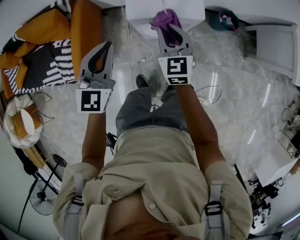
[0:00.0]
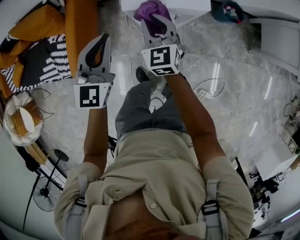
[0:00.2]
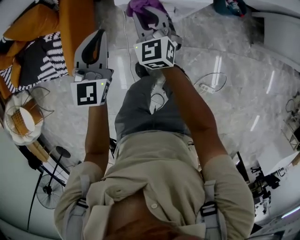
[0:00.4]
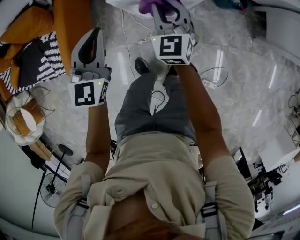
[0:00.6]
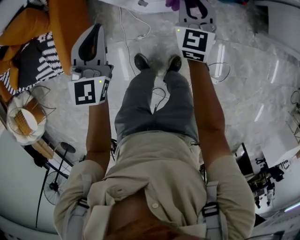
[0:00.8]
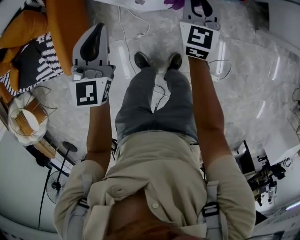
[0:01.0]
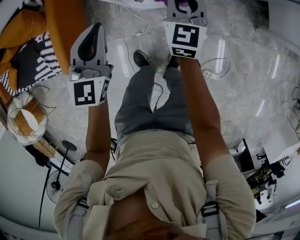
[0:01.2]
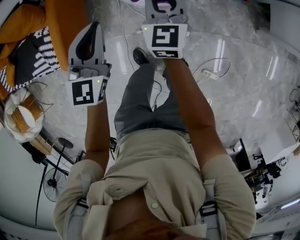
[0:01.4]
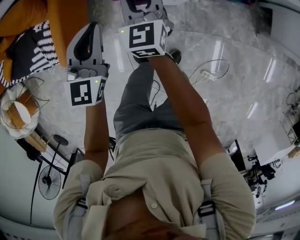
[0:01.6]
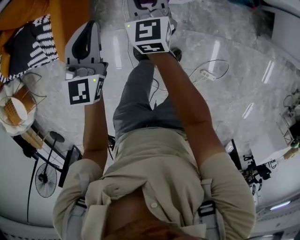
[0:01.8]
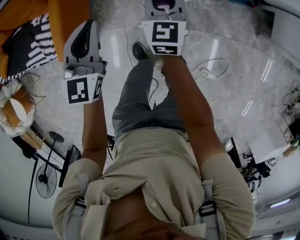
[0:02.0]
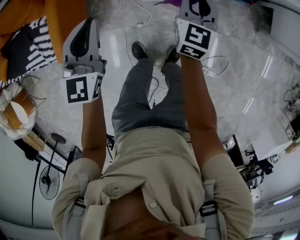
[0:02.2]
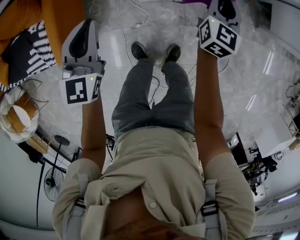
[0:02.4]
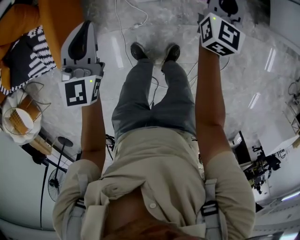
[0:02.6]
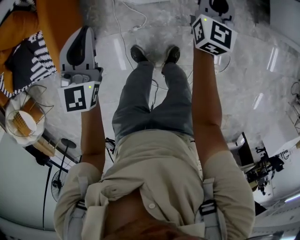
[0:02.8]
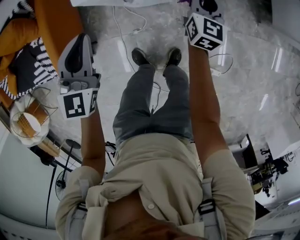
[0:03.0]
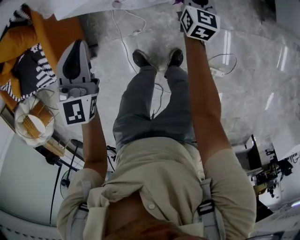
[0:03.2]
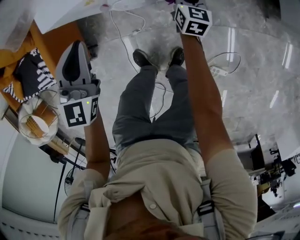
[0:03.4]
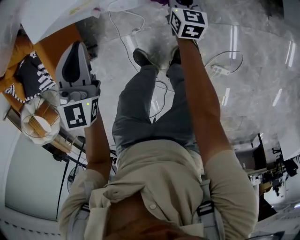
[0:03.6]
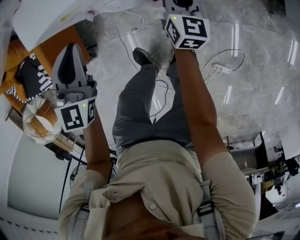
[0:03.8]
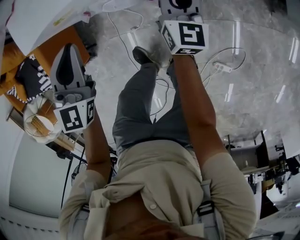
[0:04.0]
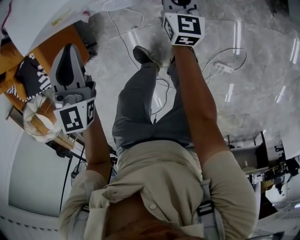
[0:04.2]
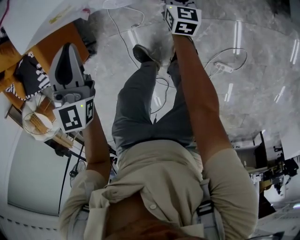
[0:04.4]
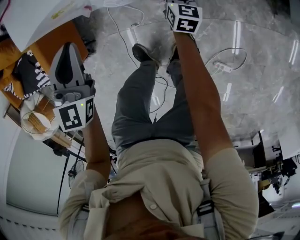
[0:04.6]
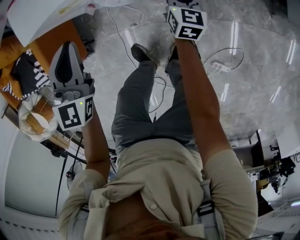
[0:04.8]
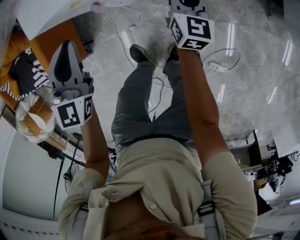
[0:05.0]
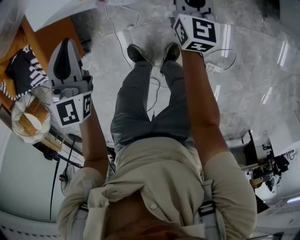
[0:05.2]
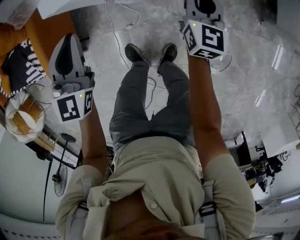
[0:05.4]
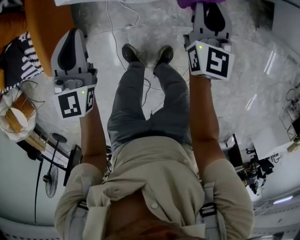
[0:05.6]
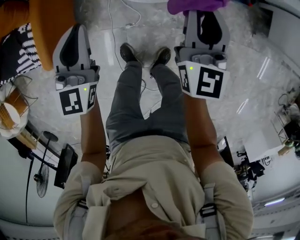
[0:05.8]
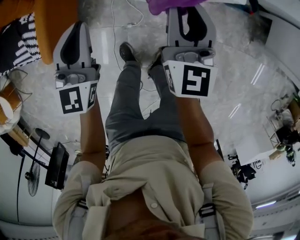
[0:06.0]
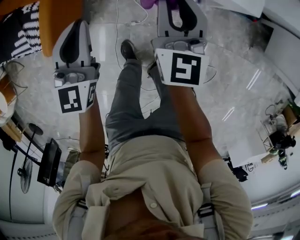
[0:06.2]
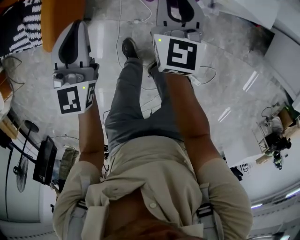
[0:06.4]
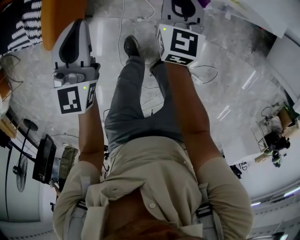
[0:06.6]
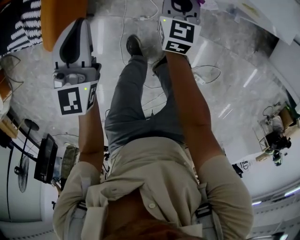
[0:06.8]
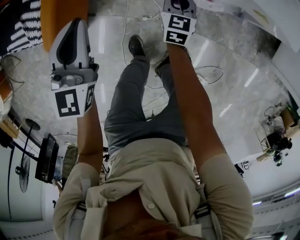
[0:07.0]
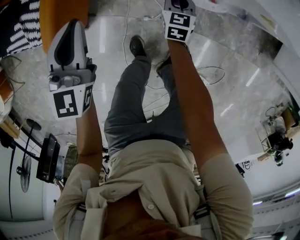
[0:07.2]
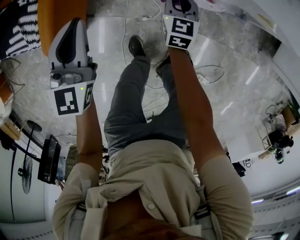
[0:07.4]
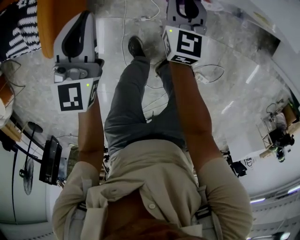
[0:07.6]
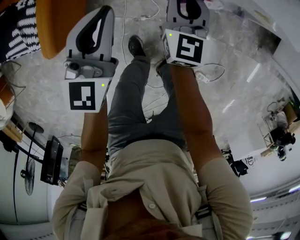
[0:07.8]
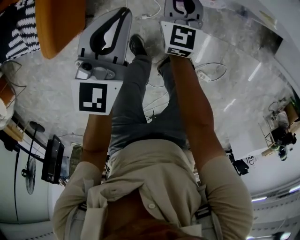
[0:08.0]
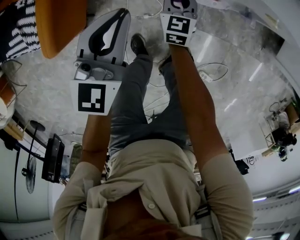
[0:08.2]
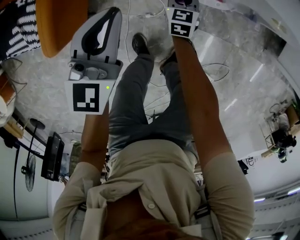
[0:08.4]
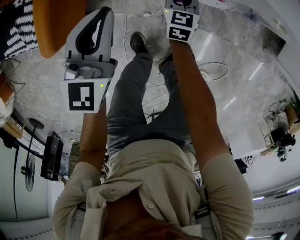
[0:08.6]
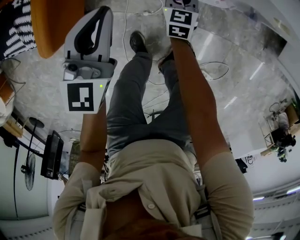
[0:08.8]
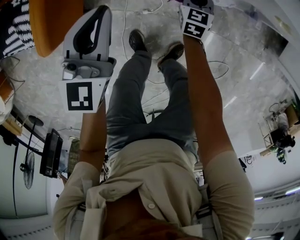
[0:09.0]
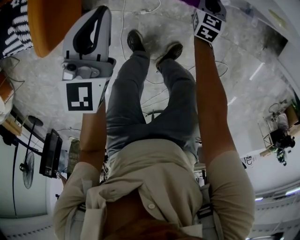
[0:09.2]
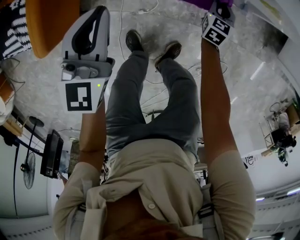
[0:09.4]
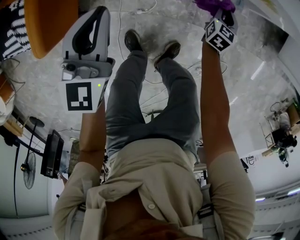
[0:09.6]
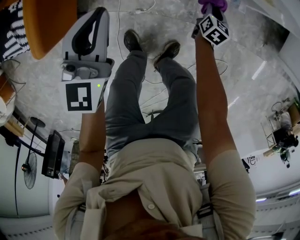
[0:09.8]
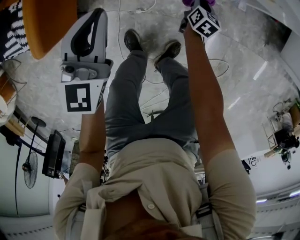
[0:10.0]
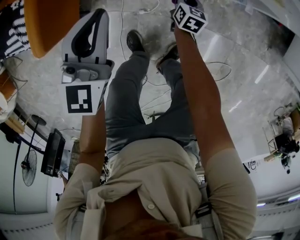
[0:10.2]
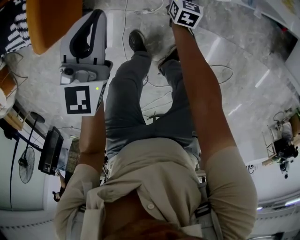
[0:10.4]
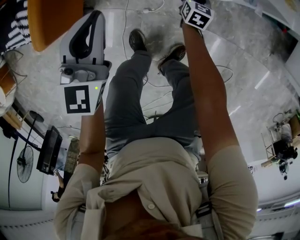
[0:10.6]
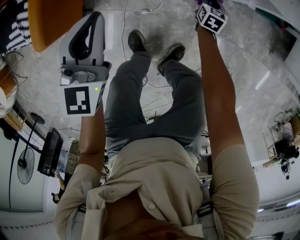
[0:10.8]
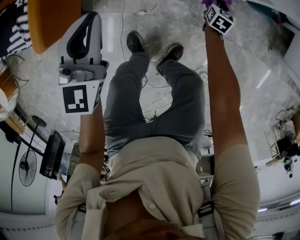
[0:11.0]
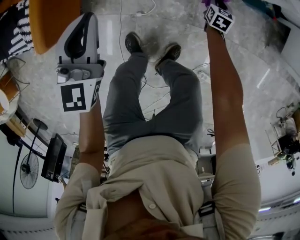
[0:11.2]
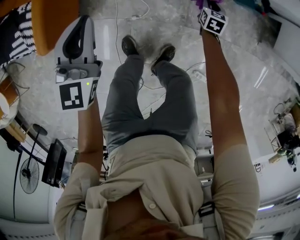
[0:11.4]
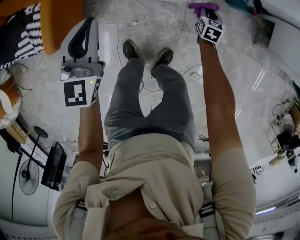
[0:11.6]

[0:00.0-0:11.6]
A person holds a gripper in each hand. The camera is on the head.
0:00.0 to 0:01.4: The left gripper is displaced downward by roughly 10 cm; the right gripper goes left and right, roughly 20 cm each way, reversing 2 times.
0:01.4 to 0:02.8: The left gripper travels to the left and back again, some 10 cm each way; the right gripper goes some 15 cm to the right.
0:02.8 to 0:04.4: The left gripper heads downward and to the right, covering approximately 15 cm; the right gripper swings up and down, about 30 cm each way, with 2 reversals, and swivels some 30 degrees.
0:04.4 to 0:05.8: The left gripper heads to the left and upward, covering some 10 cm. Meanwhile the right gripper moves upward, some 35 cm, and swivels about 30 degrees.
0:05.8 to 0:07.2: The right gripper travels downward and to the left by some 40 cm, and turns by some 30 degrees; the left gripper shifts about 20 cm to the left.
0:07.2 to 0:08.8: The left gripper heads to the right, covering some 5 cm. The right gripper goes upward and returns, about 15 cm each way.
0:08.8 to 0:10.2: The right gripper heads to the right and downward, covering roughly 15 cm, and turns by roughly 30 degrees. The left gripper travels to the right by some 5 cm.
0:10.2 to 0:11.6: The right gripper shifts some 20 cm to the right and upward. Meanwhile the left gripper travels upward by about 15 cm.

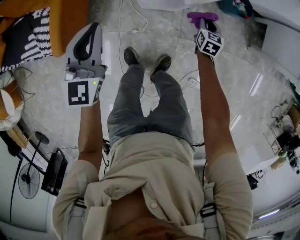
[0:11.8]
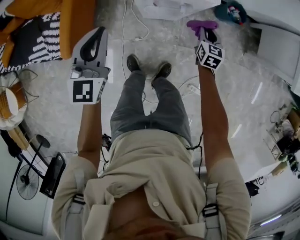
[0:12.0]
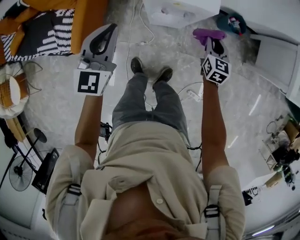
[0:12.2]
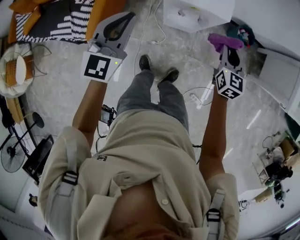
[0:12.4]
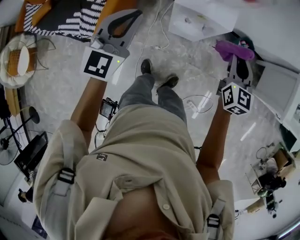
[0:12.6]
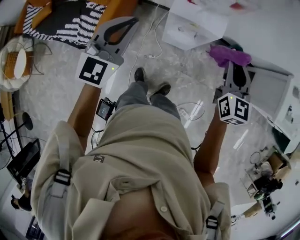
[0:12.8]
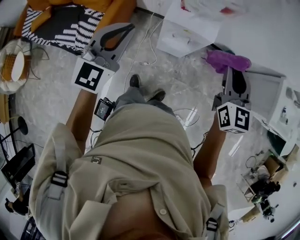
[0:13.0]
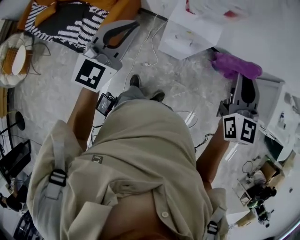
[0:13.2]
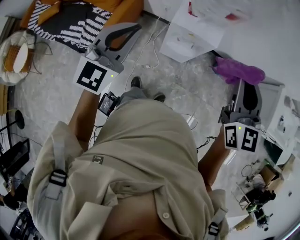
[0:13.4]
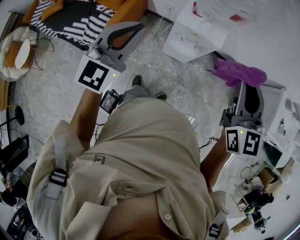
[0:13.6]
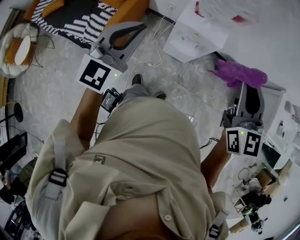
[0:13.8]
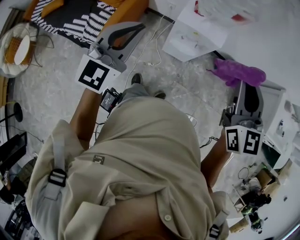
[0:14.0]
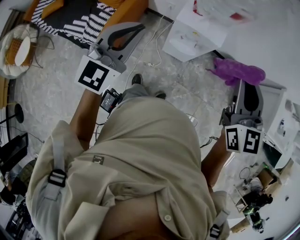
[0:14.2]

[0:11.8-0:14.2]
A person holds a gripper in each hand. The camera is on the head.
0:11.8 to 0:13.0: The right gripper shifts roughly 60 cm upward, and points its fingers approximately 30 degrees further upward; the left gripper shifts some 30 cm upward.
0:13.0 to 0:14.2: The right gripper shifts some 10 cm upward and backward. The left gripper is displaced backward by some 5 cm.

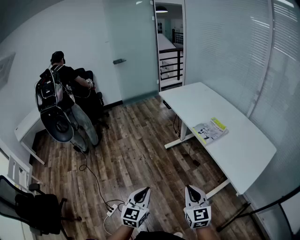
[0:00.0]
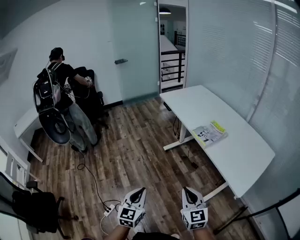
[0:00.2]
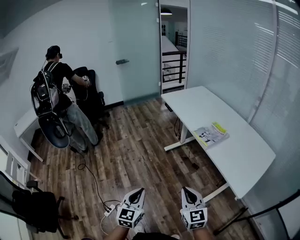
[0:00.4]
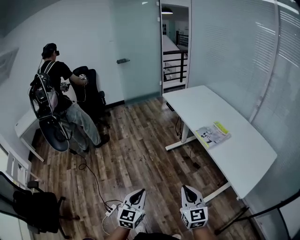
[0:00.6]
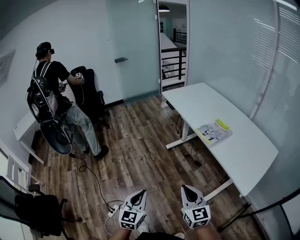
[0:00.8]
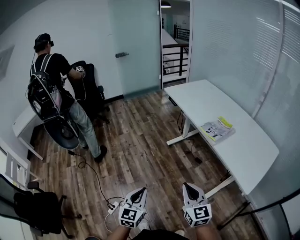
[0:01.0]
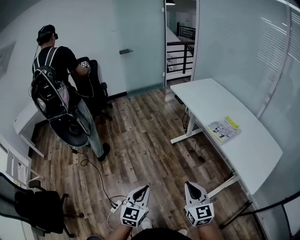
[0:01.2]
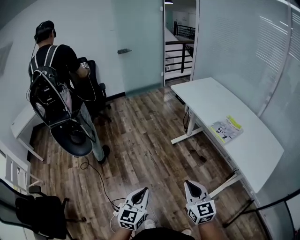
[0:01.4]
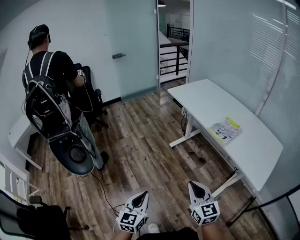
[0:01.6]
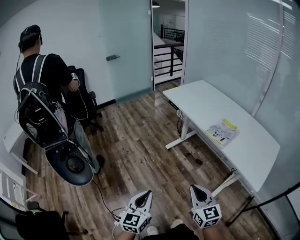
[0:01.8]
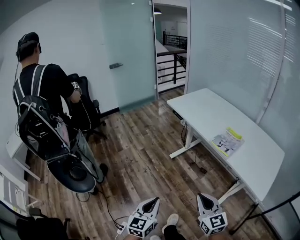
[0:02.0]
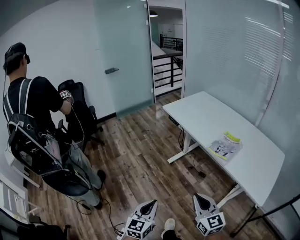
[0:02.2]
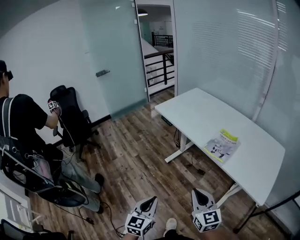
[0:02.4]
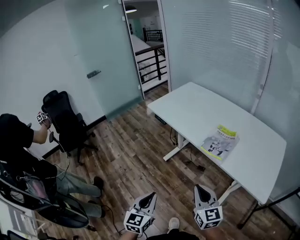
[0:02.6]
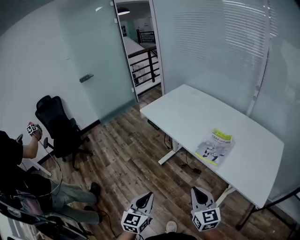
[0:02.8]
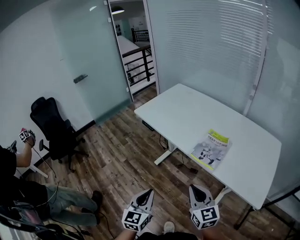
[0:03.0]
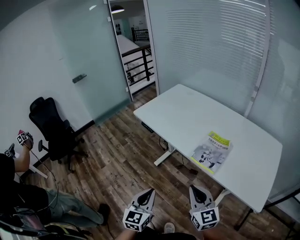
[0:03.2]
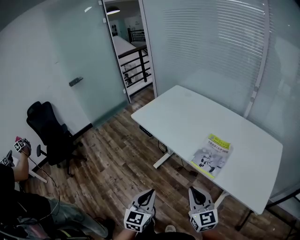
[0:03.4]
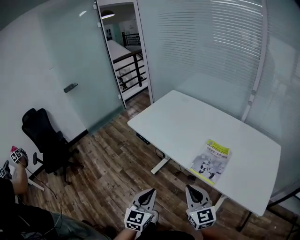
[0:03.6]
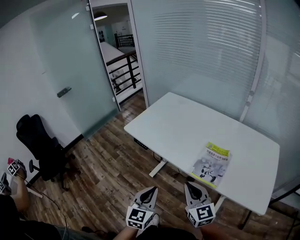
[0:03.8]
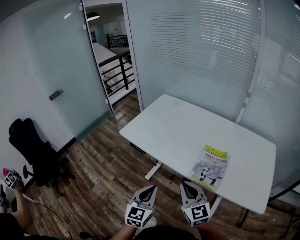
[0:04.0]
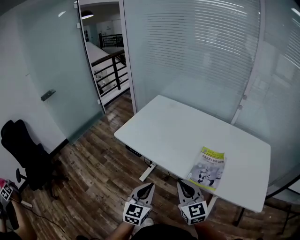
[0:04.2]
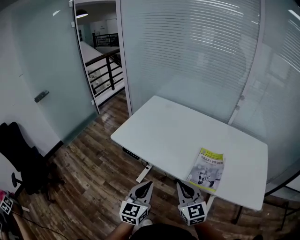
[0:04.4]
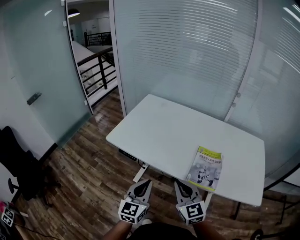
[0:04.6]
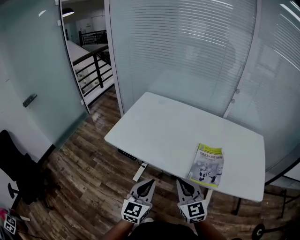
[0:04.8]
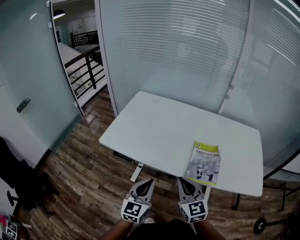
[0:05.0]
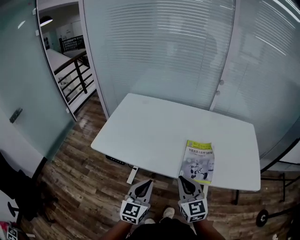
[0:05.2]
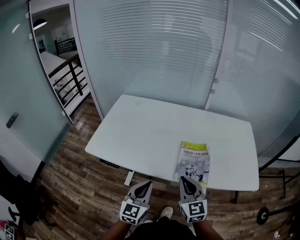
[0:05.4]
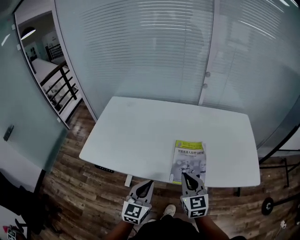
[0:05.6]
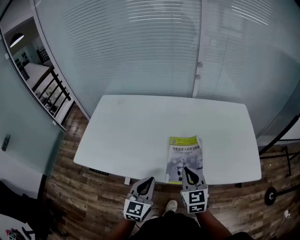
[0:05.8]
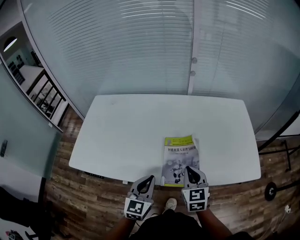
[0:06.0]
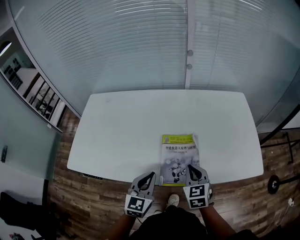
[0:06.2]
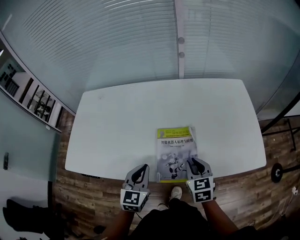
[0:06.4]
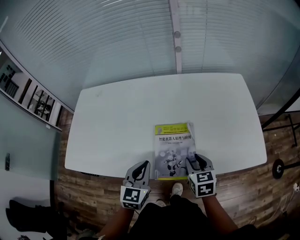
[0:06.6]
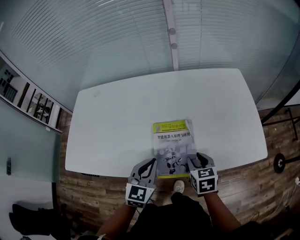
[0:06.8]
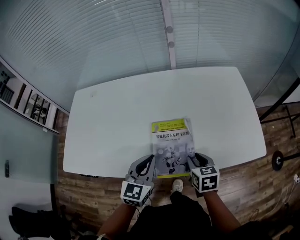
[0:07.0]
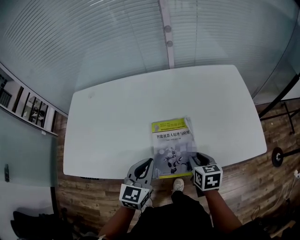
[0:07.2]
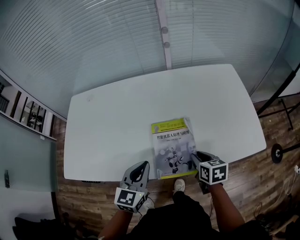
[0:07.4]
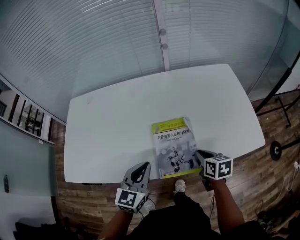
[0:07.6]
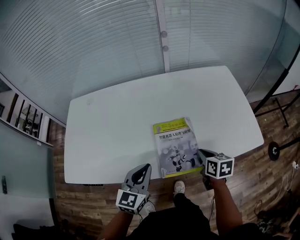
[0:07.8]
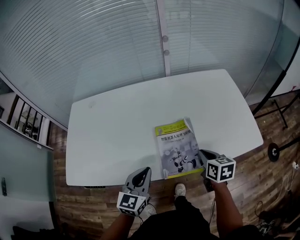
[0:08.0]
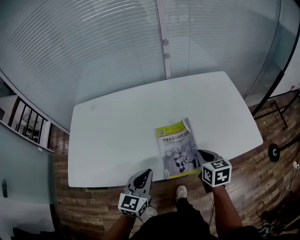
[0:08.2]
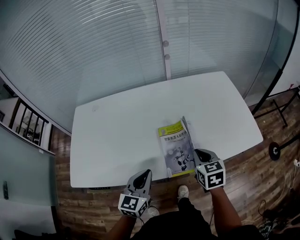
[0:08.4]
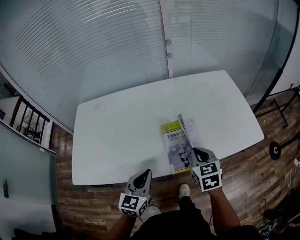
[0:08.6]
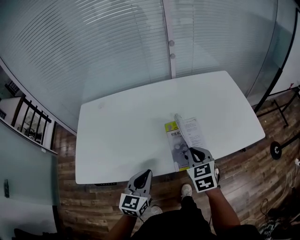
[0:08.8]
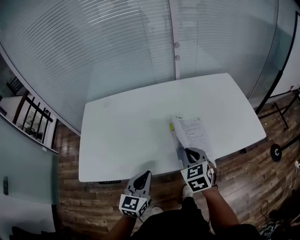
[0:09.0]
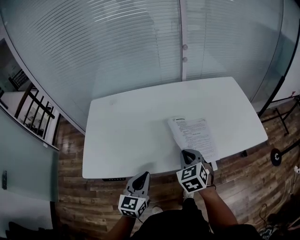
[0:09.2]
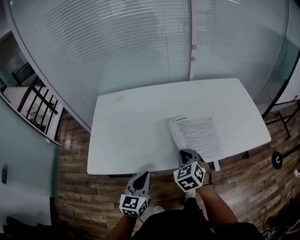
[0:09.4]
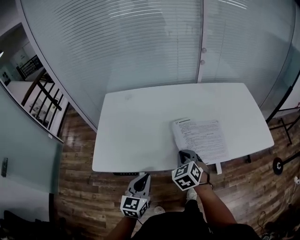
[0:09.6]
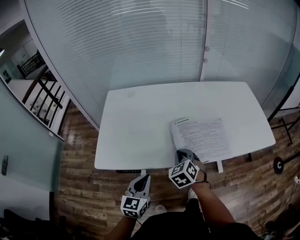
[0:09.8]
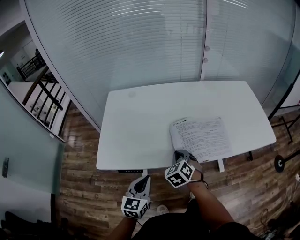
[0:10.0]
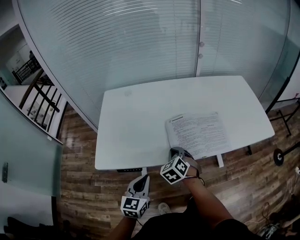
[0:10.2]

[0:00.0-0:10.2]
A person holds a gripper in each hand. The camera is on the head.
0:00.0 to 0:01.4: The grippers both shift to the left by some 15 cm.
0:01.4 to 0:03.0: The right gripper heads forward and to the right, covering about 25 cm; the left gripper is displaced forward by about 30 cm.
0:03.0 to 0:04.4: The right gripper goes some 20 cm forward and to the left; the left gripper is displaced forward by approximately 25 cm.
0:04.4 to 0:05.8: The left gripper ends up approximately 15 cm from where it was, and turns by about 20 degrees. Meanwhile the right gripper ends up about 20 cm from where it was, and changes its angle by approximately 30 degrees.
0:05.8 to 0:07.2: The left gripper travels forward by about 10 cm. The right gripper shifts approximately 15 cm downward and to the right, turns by about 40 degrees, and opens up.
0:07.2 to 0:08.8: The left gripper is displaced to the left and backward by roughly 10 cm. Meanwhile the right gripper goes roughly 15 cm to the left and upward, rotates roughly 30 degrees, and closes its fingers.
0:08.8 to 0:10.2: The left gripper moves to the left and backward, approximately 20 cm. The right gripper goes about 25 cm to the left, and swivels about 30 degrees.
